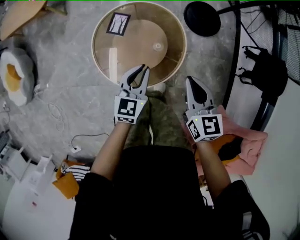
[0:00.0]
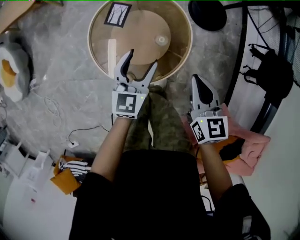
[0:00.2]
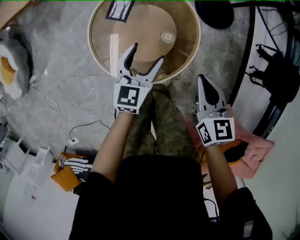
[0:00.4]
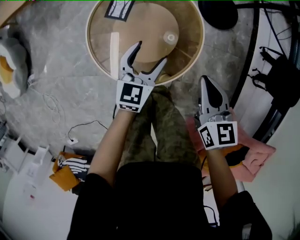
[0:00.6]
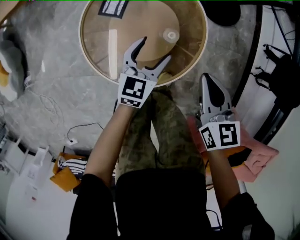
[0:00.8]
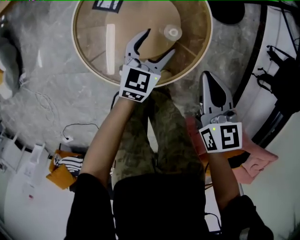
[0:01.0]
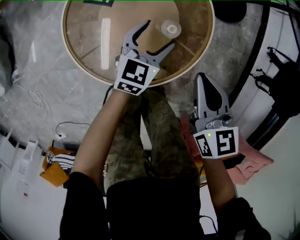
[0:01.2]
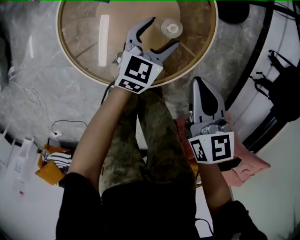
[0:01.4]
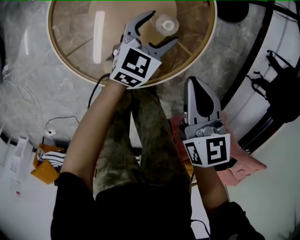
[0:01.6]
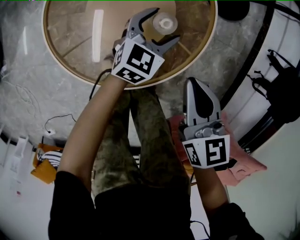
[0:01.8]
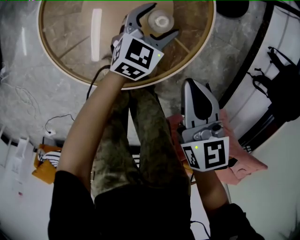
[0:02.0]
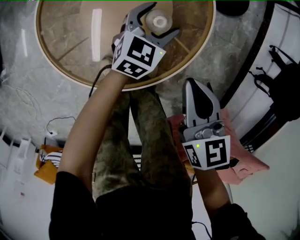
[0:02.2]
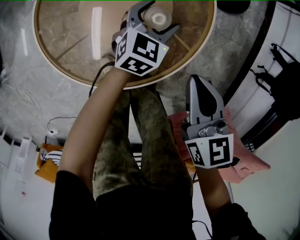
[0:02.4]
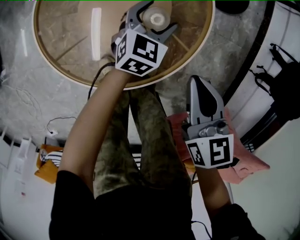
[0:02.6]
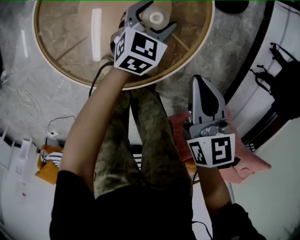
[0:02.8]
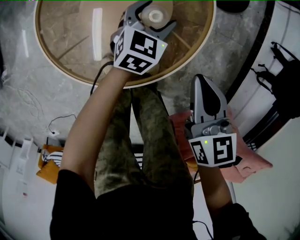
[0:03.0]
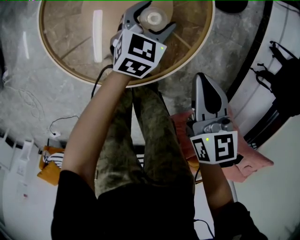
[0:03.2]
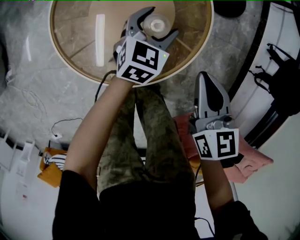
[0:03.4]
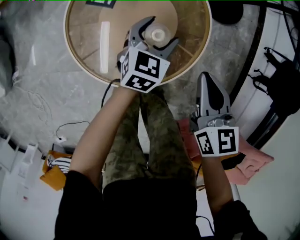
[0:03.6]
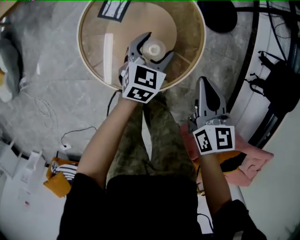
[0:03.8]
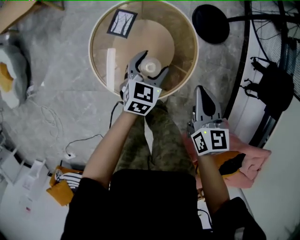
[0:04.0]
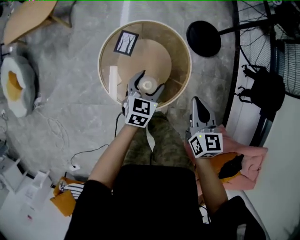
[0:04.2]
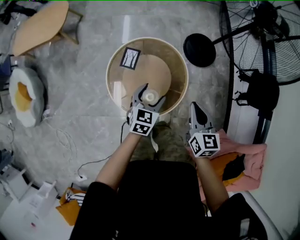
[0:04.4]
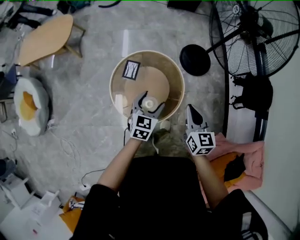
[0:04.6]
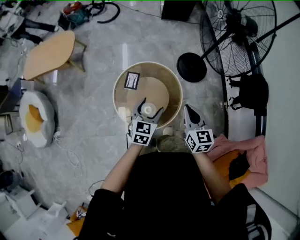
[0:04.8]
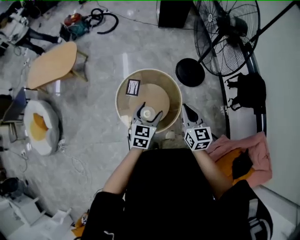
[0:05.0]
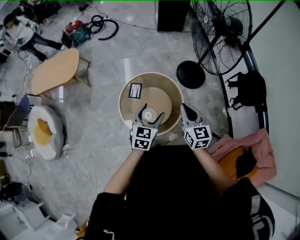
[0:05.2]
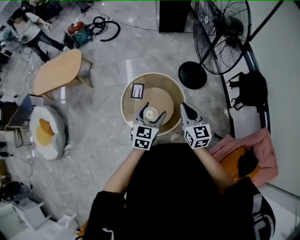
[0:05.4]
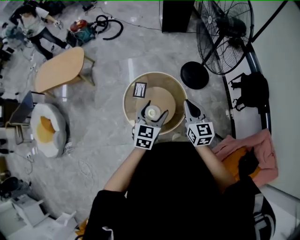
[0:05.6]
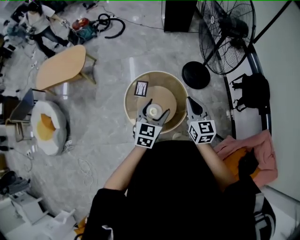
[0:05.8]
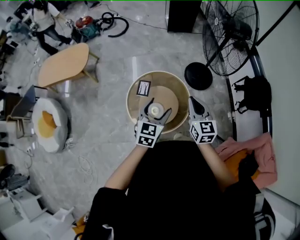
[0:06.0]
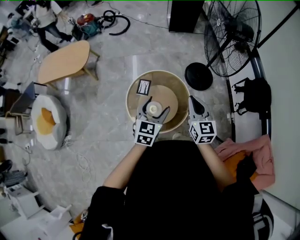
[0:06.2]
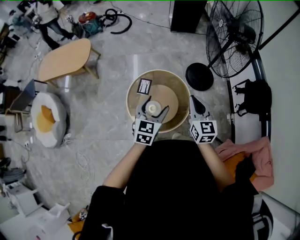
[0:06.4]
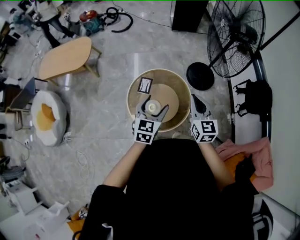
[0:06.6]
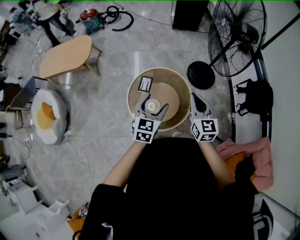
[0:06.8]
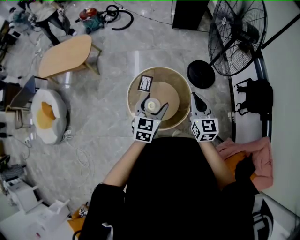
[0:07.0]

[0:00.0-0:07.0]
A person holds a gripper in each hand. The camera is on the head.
0:00.0 to 0:01.4: The two grippers go approximately 30 cm downward. The left gripper opens.
0:01.4 to 0:02.8: The left gripper shifts some 10 cm downward; the right gripper shifts by roughly 5 cm.
0:02.8 to 0:04.2: Both grippers travel together upward, some 30 cm.
0:04.2 to 0:05.6: Both grippers move upward, roughly 30 cm.
0:05.6 to 0:07.0: The grippers move only a little.

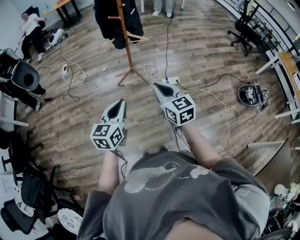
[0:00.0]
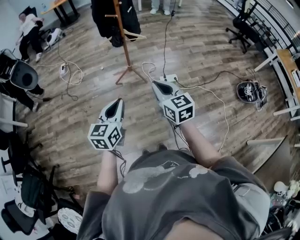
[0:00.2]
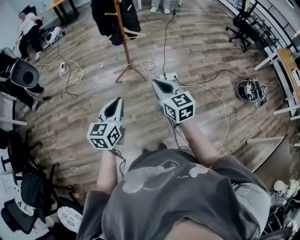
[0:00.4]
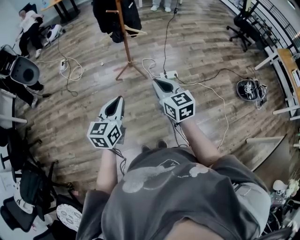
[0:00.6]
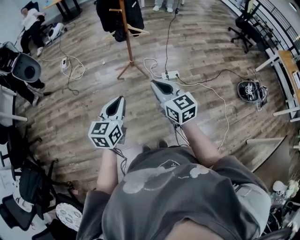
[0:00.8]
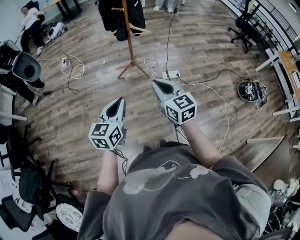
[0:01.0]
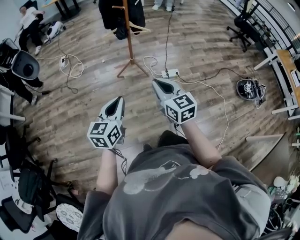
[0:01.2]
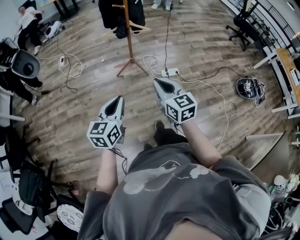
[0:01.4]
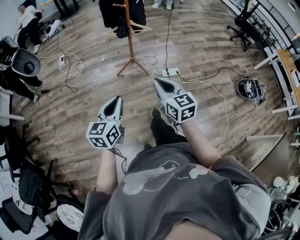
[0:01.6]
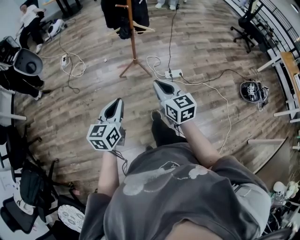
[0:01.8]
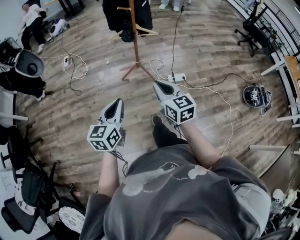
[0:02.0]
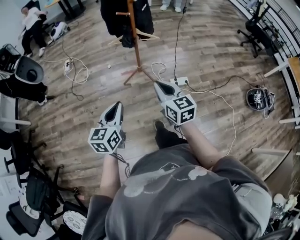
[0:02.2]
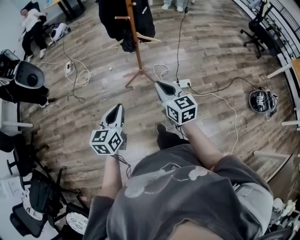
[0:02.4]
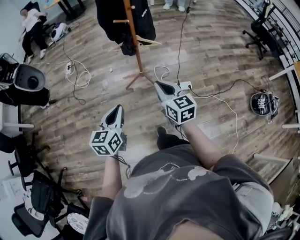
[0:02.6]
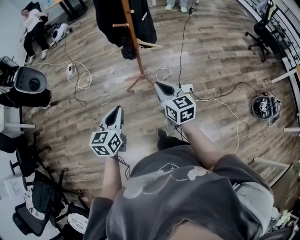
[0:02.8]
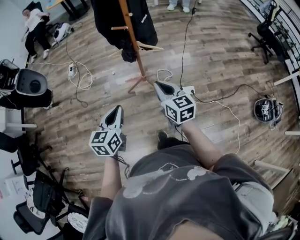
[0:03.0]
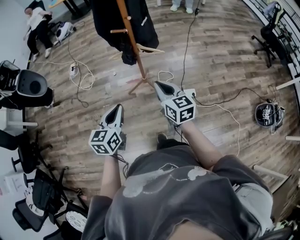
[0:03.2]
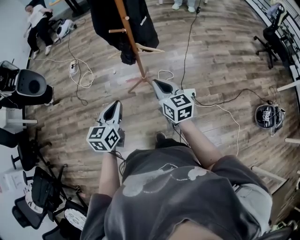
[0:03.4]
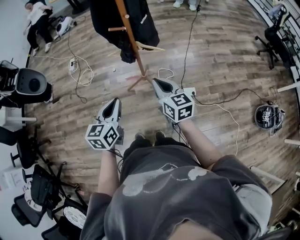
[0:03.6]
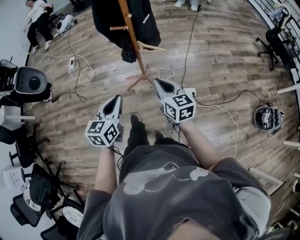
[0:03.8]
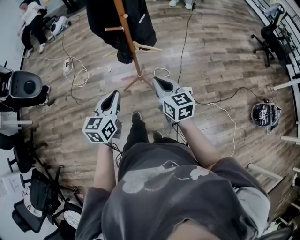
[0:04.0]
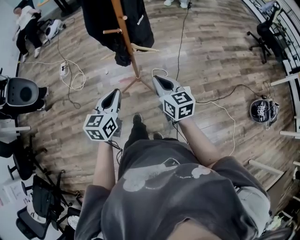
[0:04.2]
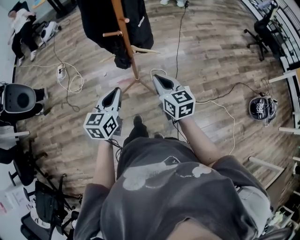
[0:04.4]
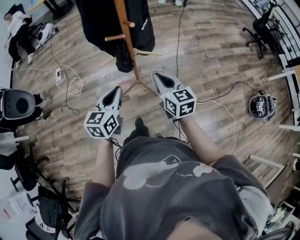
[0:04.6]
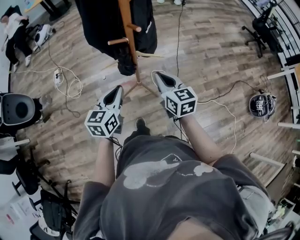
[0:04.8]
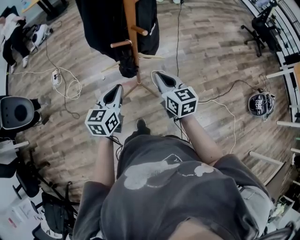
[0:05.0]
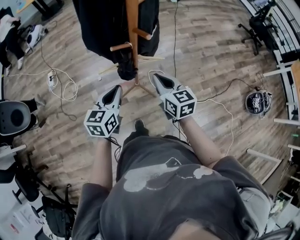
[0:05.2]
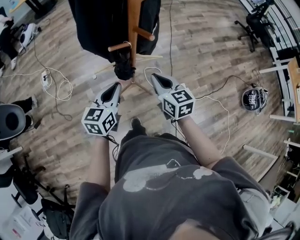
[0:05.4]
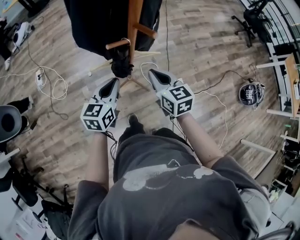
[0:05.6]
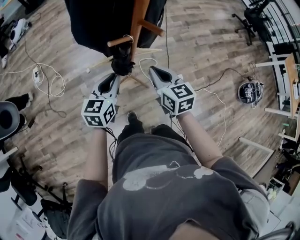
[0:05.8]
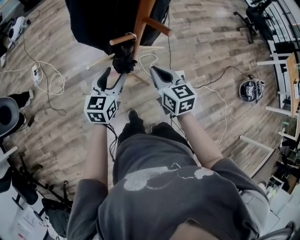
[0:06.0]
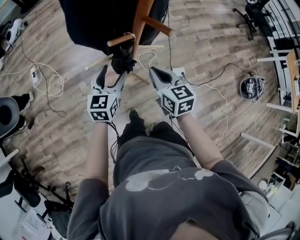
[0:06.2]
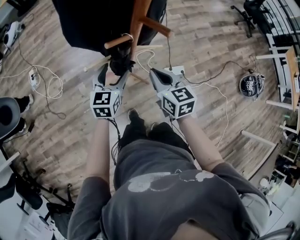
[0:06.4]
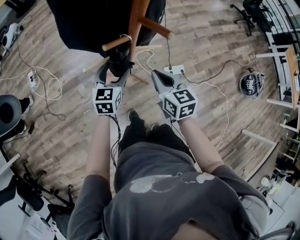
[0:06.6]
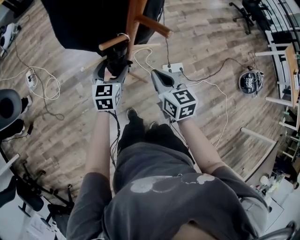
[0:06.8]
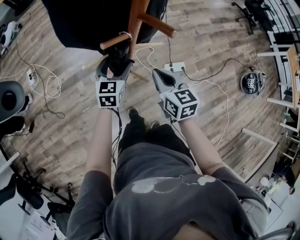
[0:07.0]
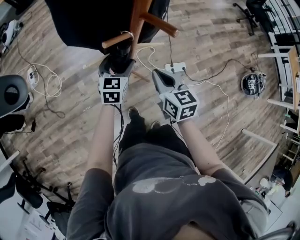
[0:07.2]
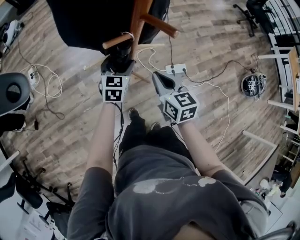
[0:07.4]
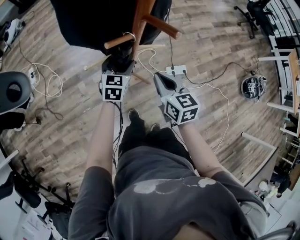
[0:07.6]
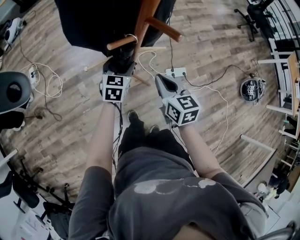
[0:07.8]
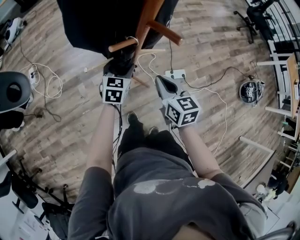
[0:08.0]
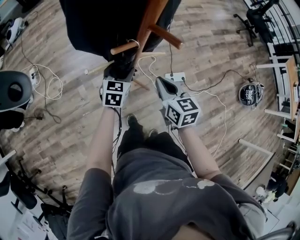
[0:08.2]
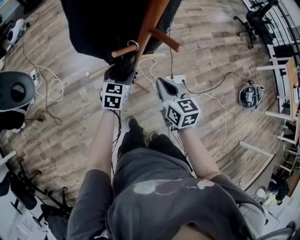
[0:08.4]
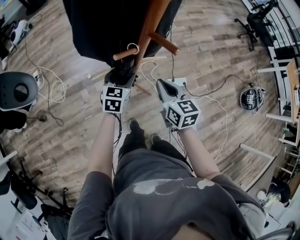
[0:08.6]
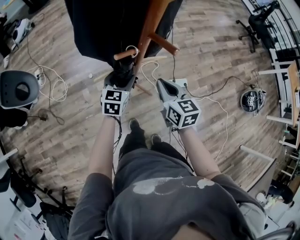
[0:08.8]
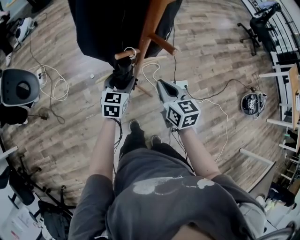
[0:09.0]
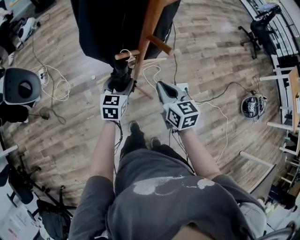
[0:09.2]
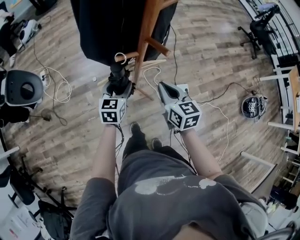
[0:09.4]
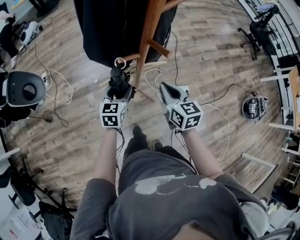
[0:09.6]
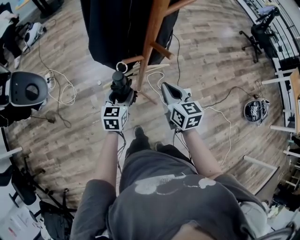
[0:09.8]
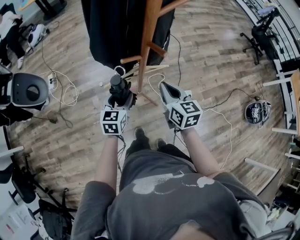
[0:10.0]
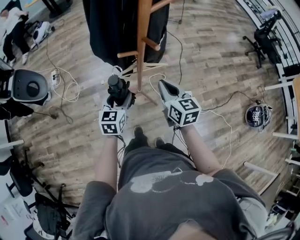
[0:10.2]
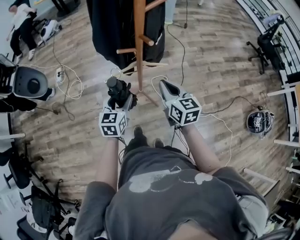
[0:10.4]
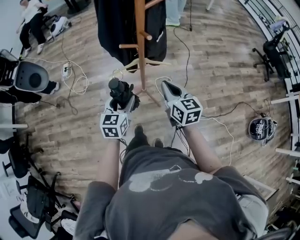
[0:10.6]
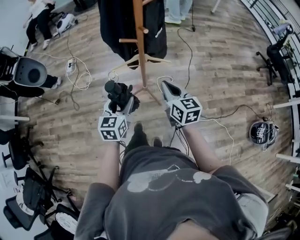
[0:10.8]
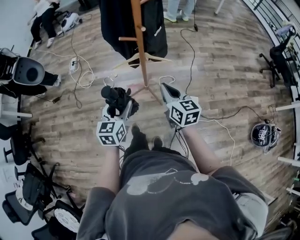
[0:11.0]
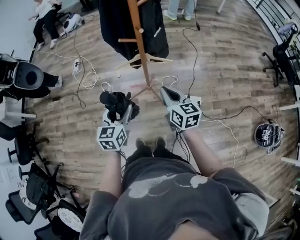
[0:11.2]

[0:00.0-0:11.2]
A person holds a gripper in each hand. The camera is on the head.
0:00.0 to 0:01.6: The grippers both shift to the left by some 5 cm.
0:01.6 to 0:03.2: The grippers both shift forward by approximately 35 cm.
0:03.2 to 0:04.8: Both grippers move forward, about 20 cm.
0:04.8 to 0:06.4: The right gripper goes some 15 cm downward, forward and to the left. The left gripper moves forward and downward, approximately 20 cm, and opens up.
0:06.4 to 0:08.0: The left gripper shifts roughly 5 cm downward.
0:08.0 to 0:09.6: The right gripper moves upward, roughly 5 cm. Meanwhile the left gripper goes about 10 cm backward and upward.
0:09.6 to 0:11.2: The right gripper heads backward, covering approximately 15 cm; the left gripper heads backward and upward, covering some 30 cm, and turns by roughly 20 degrees.

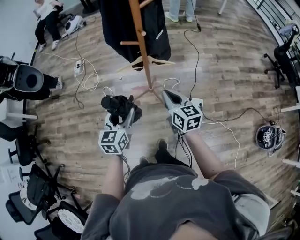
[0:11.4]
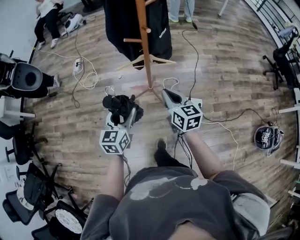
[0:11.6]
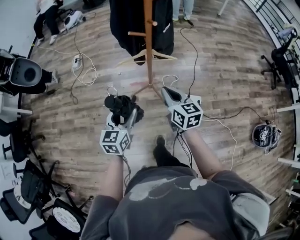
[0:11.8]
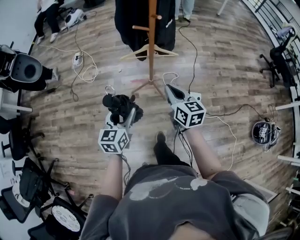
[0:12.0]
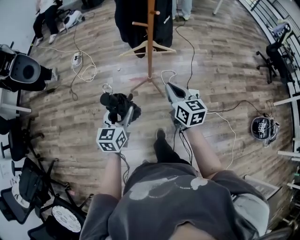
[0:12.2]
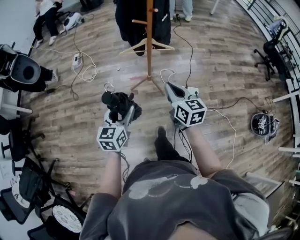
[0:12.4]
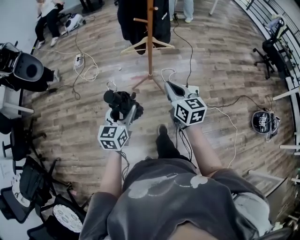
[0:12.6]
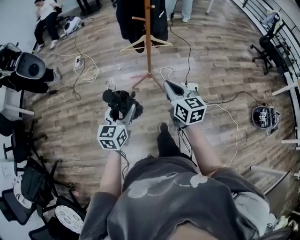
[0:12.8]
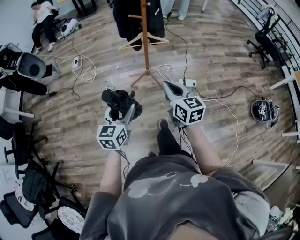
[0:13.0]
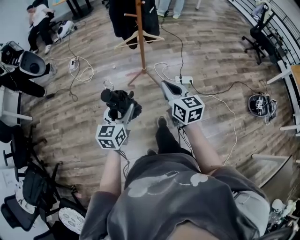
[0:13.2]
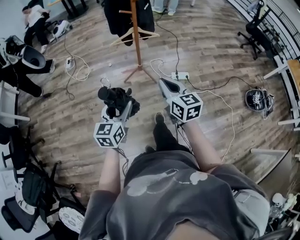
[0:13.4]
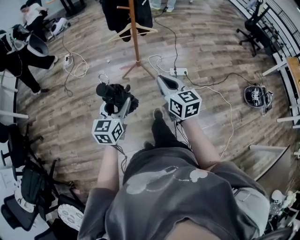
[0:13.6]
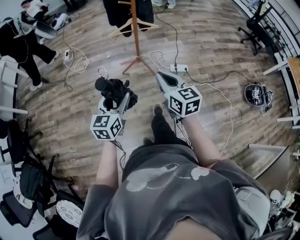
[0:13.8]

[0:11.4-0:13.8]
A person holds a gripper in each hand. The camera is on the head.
0:11.4 to 0:12.6: The two grippers go some 20 cm backward and to the left.
0:12.6 to 0:13.8: Both grippers travel together backward, approximately 15 cm.

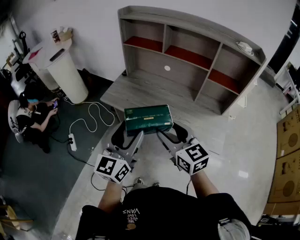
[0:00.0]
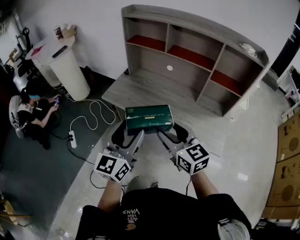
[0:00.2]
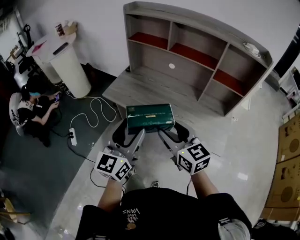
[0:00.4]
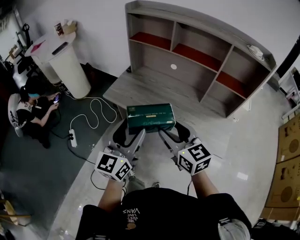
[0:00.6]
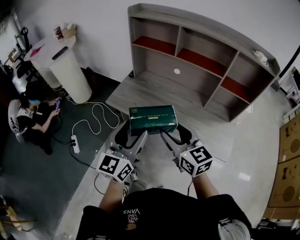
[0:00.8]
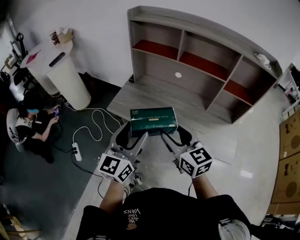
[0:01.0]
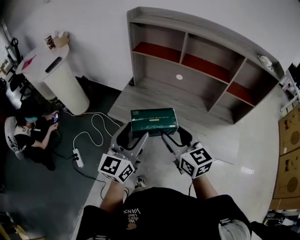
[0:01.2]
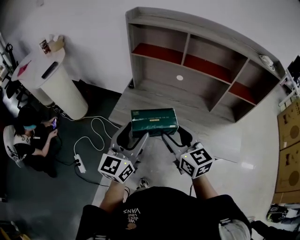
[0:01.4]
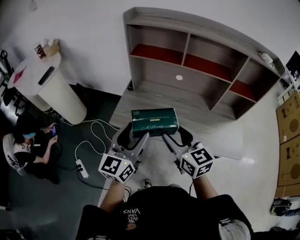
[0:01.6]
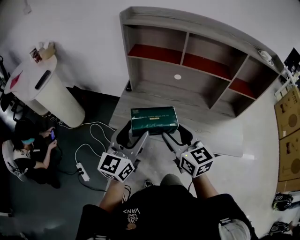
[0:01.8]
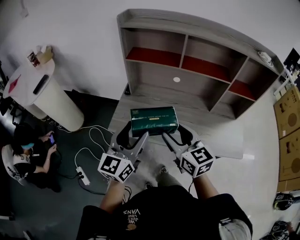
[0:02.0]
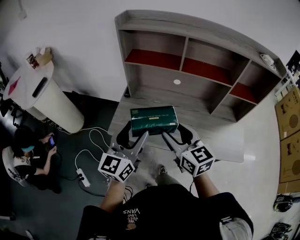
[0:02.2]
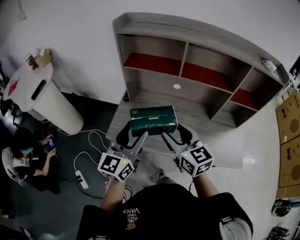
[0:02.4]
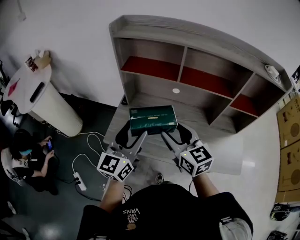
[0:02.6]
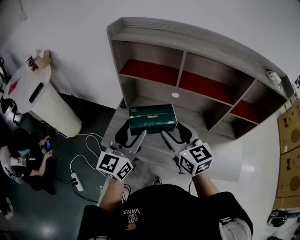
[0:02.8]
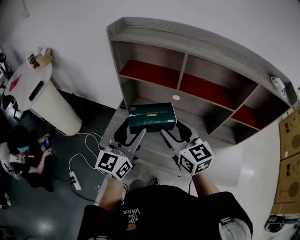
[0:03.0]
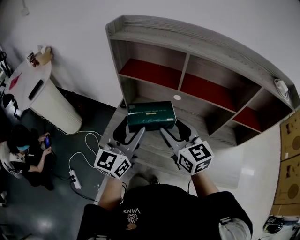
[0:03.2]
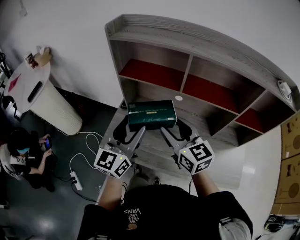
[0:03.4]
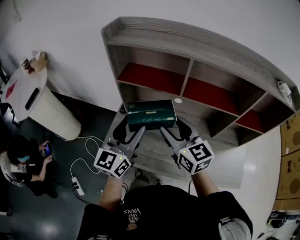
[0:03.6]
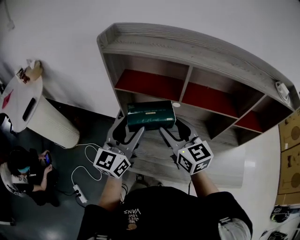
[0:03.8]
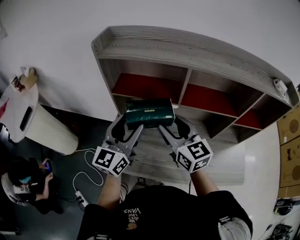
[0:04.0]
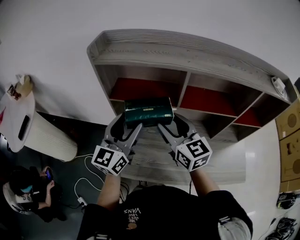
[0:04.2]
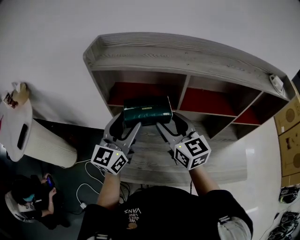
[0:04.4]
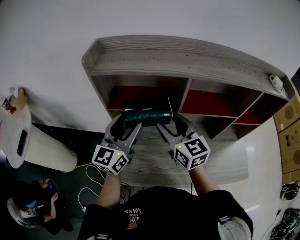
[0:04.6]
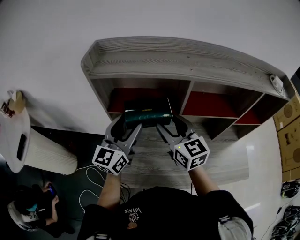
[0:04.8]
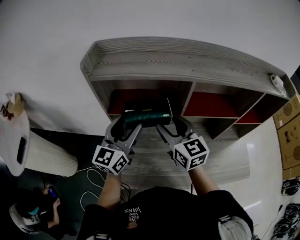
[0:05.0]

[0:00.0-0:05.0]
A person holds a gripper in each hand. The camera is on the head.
0:00.0 to 0:01.6: Both grippers travel together forward and to the left, approximately 20 cm.
0:01.6 to 0:03.4: The two grippers go about 20 cm forward.
0:03.4 to 0:05.0: Both grippers move forward, roughly 15 cm.
